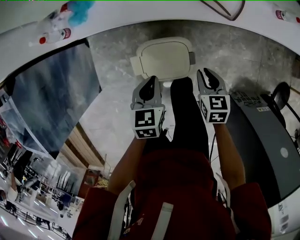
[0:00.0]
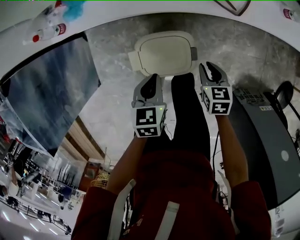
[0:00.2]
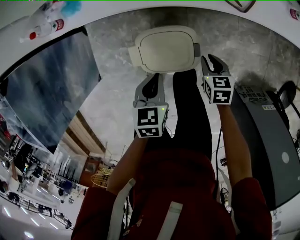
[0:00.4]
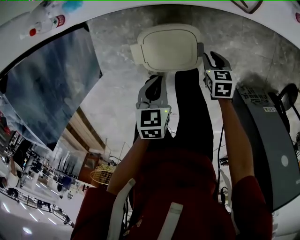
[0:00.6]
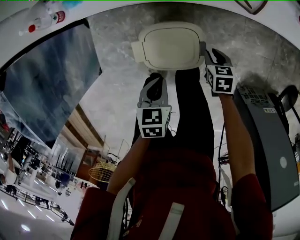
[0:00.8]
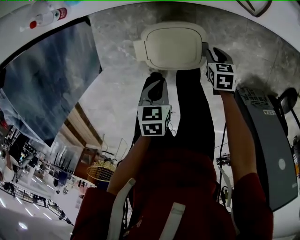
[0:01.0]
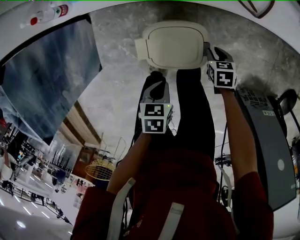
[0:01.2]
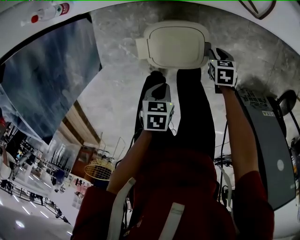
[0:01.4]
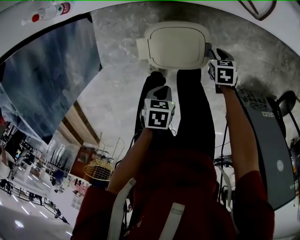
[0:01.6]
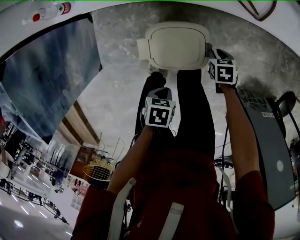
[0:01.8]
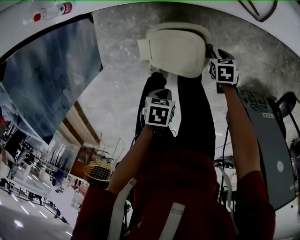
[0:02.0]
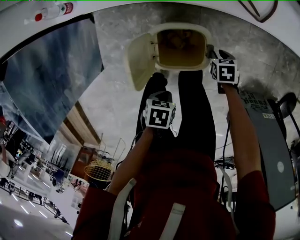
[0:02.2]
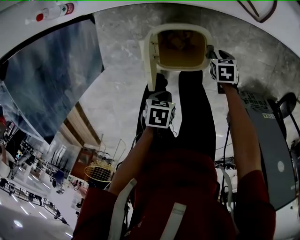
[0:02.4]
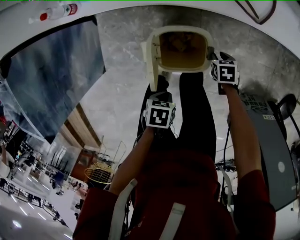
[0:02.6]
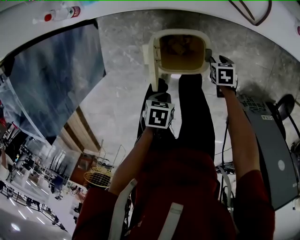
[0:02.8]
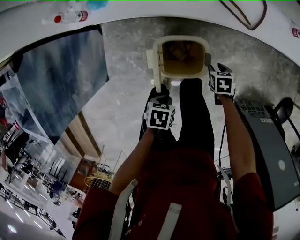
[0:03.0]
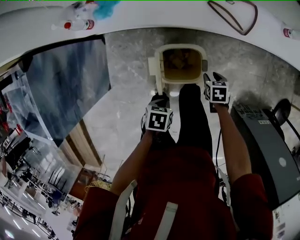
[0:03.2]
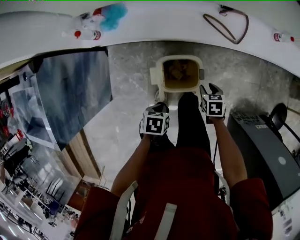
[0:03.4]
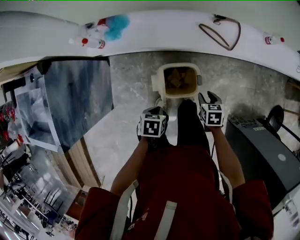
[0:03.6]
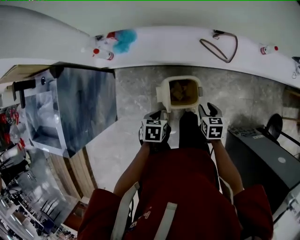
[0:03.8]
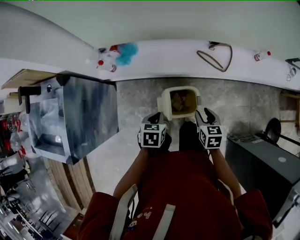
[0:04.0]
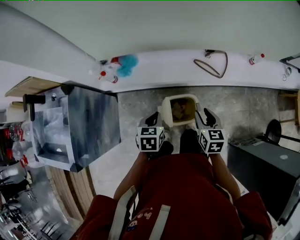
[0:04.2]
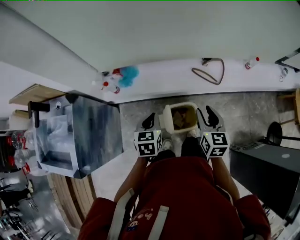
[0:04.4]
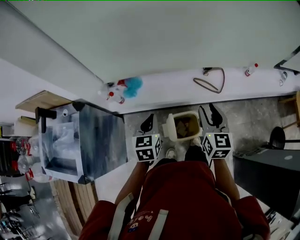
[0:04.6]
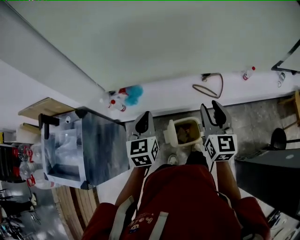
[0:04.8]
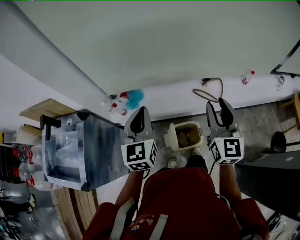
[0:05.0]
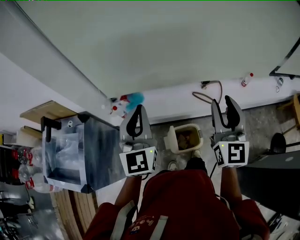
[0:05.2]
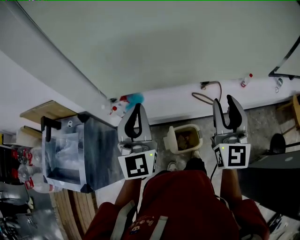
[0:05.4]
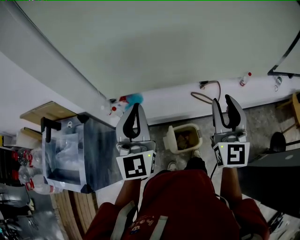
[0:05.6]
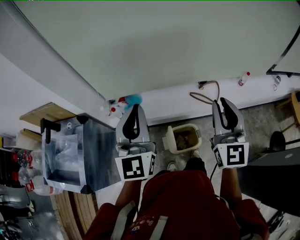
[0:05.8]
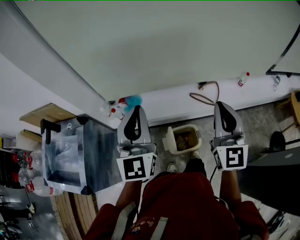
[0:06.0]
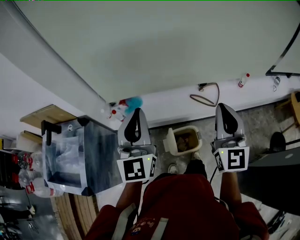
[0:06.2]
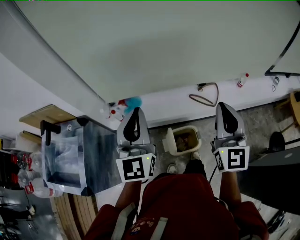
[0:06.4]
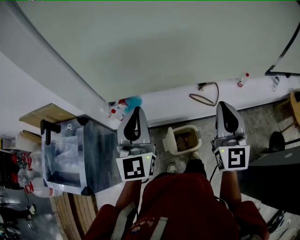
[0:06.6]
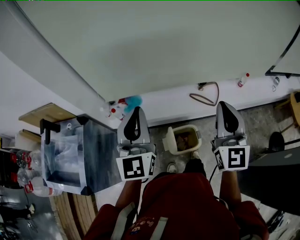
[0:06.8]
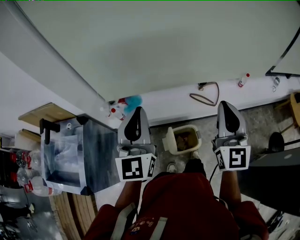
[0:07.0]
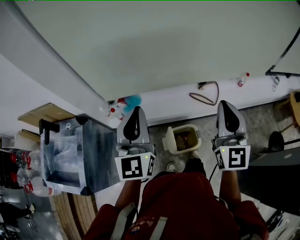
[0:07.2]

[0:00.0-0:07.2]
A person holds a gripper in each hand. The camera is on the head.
0.0 to 1.4 s: The right gripper moves downward, approximately 15 cm; the left gripper shifts approximately 15 cm backward and downward, and changes its angle by roughly 30 degrees.
1.4 to 2.8 s: The grippers make only small movements.
2.8 to 4.4 s: The right gripper is displaced upward by about 50 cm, and angles its fingers upward, by approximately 50 degrees. The left gripper goes about 30 cm upward, and tips its fingers upward by some 30 degrees.
4.4 to 5.8 s: The two grippers go about 30 cm upward. The left gripper points its fingers approximately 50 degrees further upward, while the right gripper tips its fingers upward by approximately 30 degrees, and closes.
5.8 to 7.2 s: The grippers make only small movements.

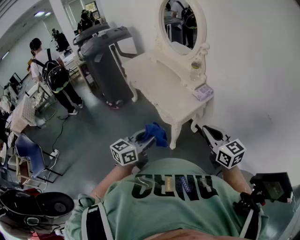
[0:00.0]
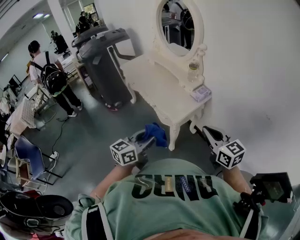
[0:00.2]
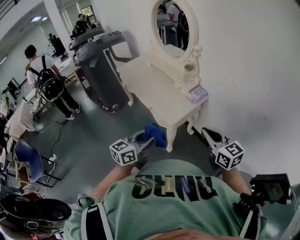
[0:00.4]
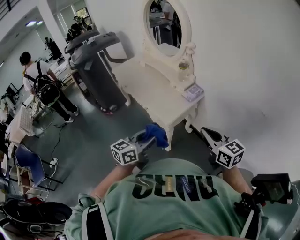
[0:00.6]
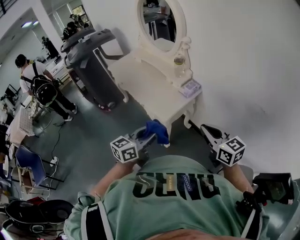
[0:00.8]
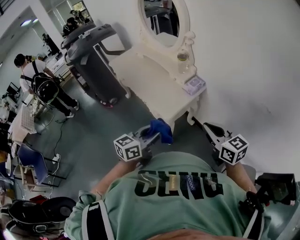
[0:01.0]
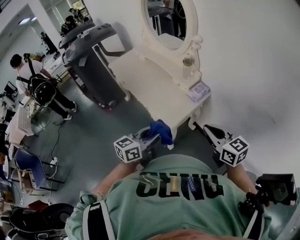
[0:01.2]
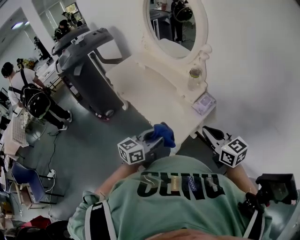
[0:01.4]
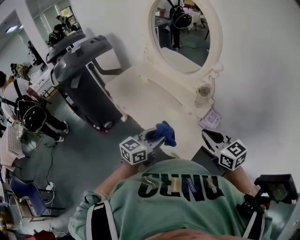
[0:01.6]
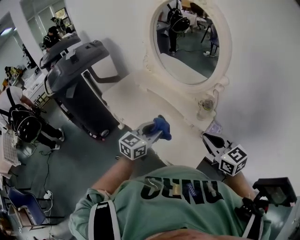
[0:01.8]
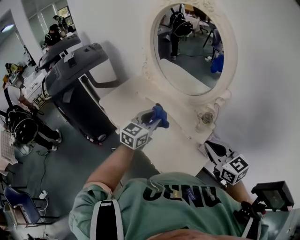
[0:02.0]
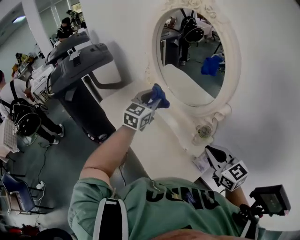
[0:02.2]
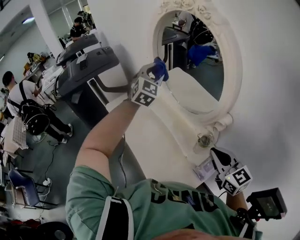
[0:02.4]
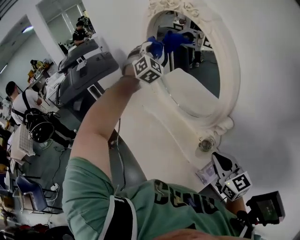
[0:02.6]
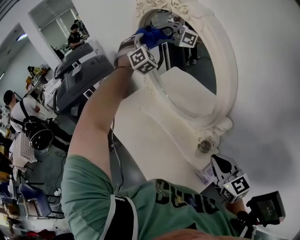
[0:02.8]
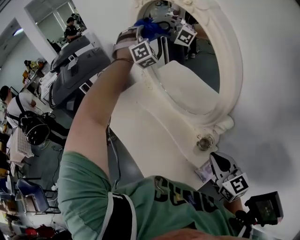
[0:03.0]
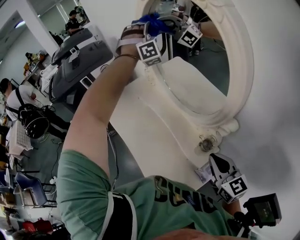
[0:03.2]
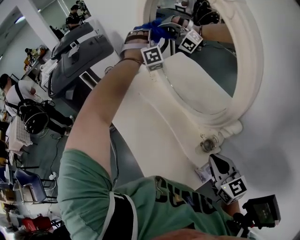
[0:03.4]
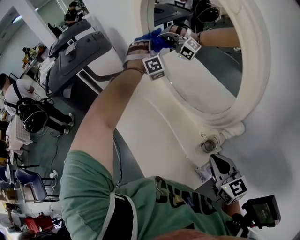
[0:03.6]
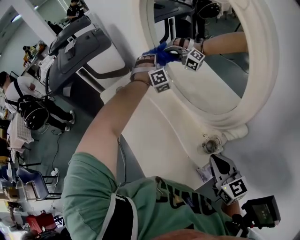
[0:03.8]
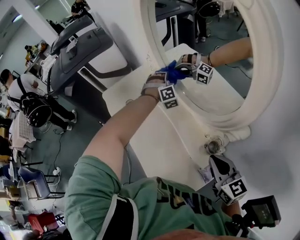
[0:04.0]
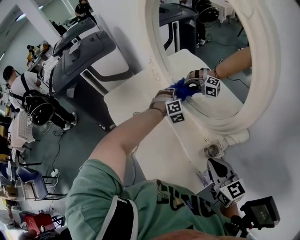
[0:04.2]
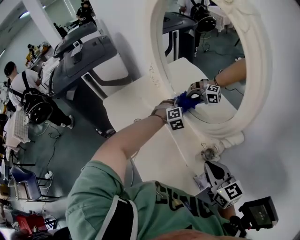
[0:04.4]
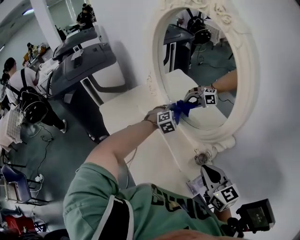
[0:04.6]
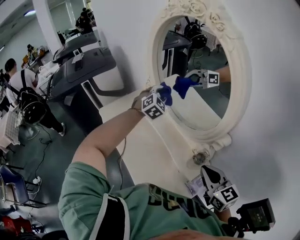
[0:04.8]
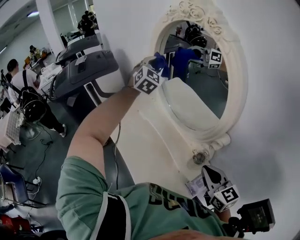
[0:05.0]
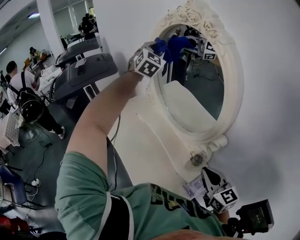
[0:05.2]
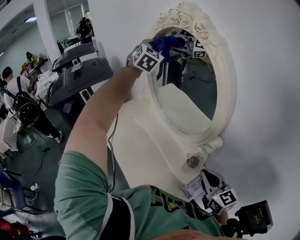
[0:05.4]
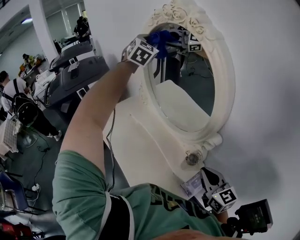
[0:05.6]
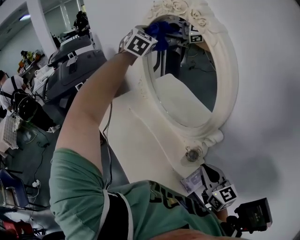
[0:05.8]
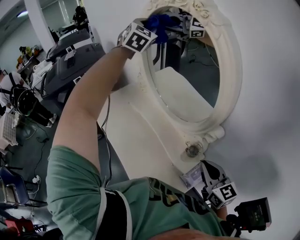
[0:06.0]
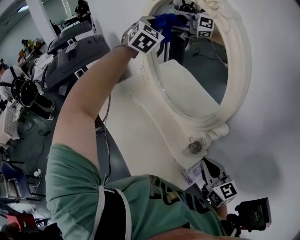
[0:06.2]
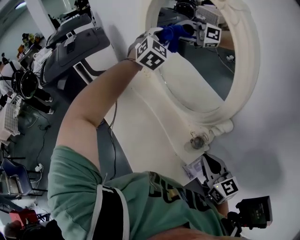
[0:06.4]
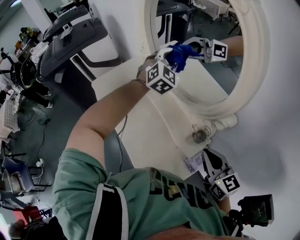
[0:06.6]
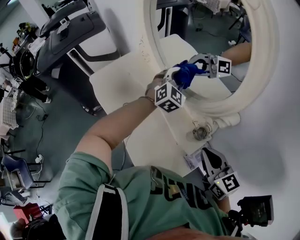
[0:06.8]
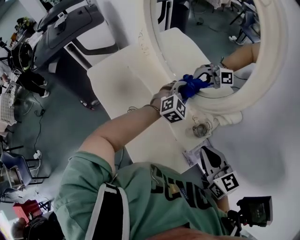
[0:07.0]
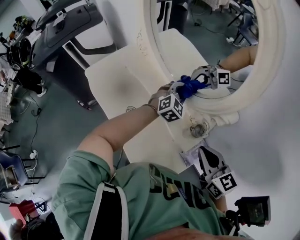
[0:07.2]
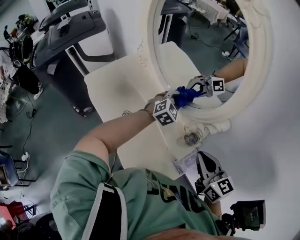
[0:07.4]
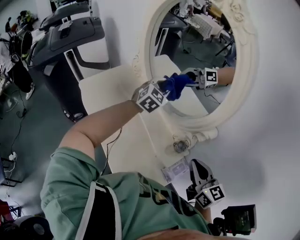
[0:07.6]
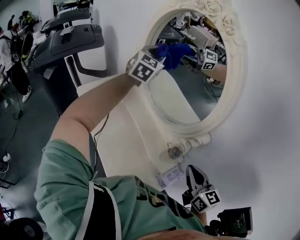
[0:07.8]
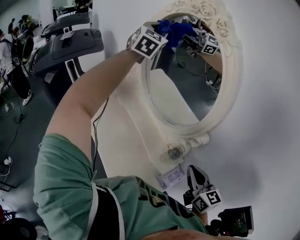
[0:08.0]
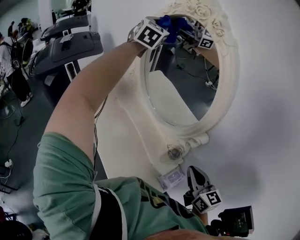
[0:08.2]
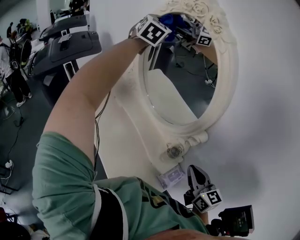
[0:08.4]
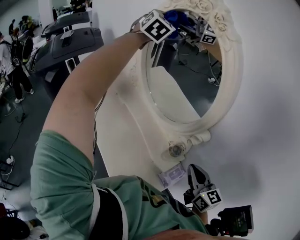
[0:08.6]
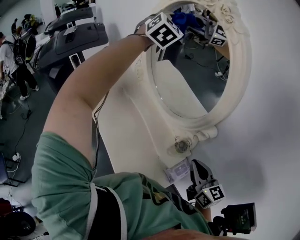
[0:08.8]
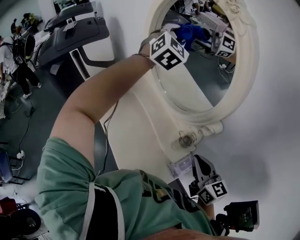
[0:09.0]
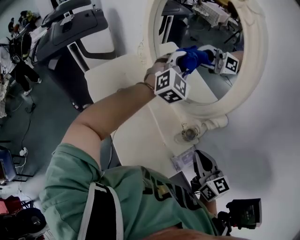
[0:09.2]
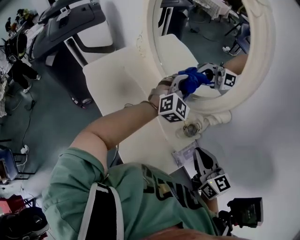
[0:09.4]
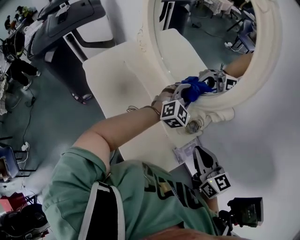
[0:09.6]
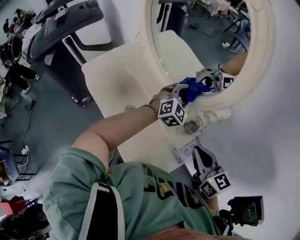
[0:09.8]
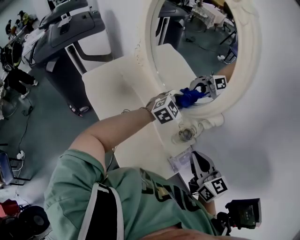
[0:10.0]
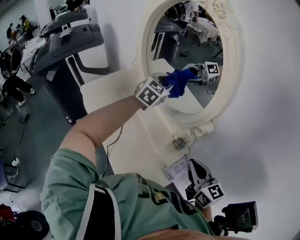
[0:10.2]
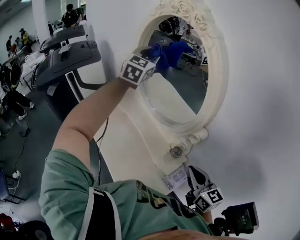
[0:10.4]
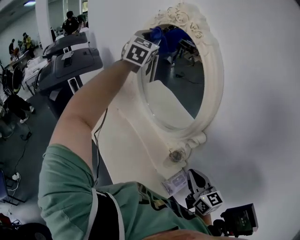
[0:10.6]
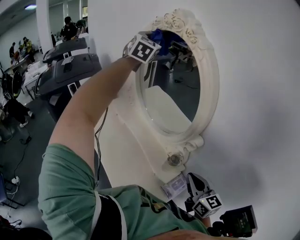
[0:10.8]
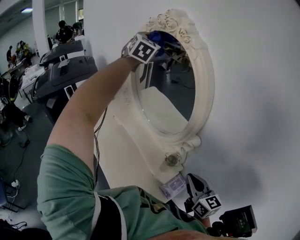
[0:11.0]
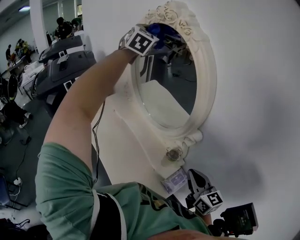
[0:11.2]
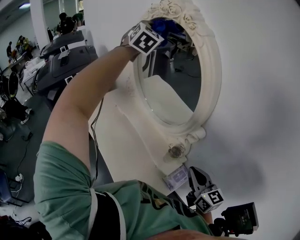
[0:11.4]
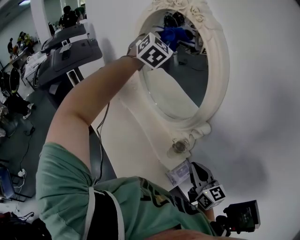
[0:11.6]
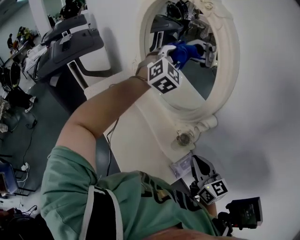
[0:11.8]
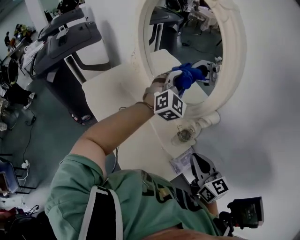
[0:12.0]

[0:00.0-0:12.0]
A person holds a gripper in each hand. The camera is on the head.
0.0 to 1.6 s: The grippers both shift forward by about 30 cm.
1.6 to 3.0 s: The left gripper changes place by some 70 cm, and rolls clockwise, seen from behind, by roughly 90 degrees; the right gripper ends up approximately 25 cm from where it was.
3.0 to 4.4 s: The right gripper shifts about 5 cm downward. Meanwhile the left gripper is displaced downward by roughly 40 cm, and angles its fingers downward, by roughly 50 degrees.
4.4 to 6.0 s: The right gripper ends up some 5 cm from where it was; the left gripper goes about 50 cm upward, and angles its fingers upward, by some 40 degrees.
6.0 to 7.6 s: The left gripper travels downward and backward by some 35 cm, and turns by some 30 degrees.
7.6 to 9.0 s: The left gripper shifts approximately 25 cm upward, and rotates approximately 20 degrees.
9.0 to 10.4 s: The left gripper goes downward and returns, about 30 cm each way, and turns by about 20 degrees.
10.4 to 12.0 s: The left gripper moves downward, to the right and backward, some 20 cm, and changes its angle by about 20 degrees.

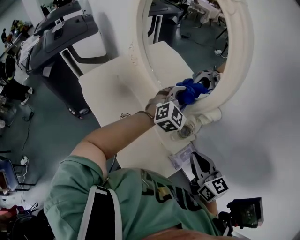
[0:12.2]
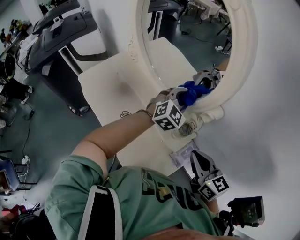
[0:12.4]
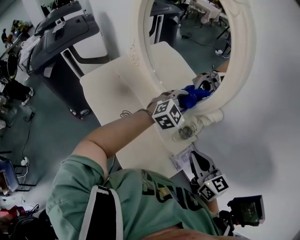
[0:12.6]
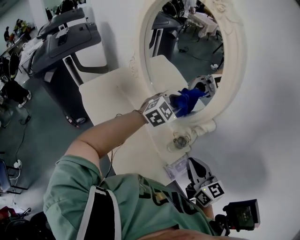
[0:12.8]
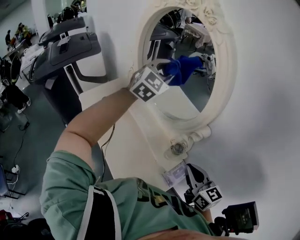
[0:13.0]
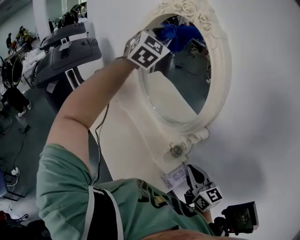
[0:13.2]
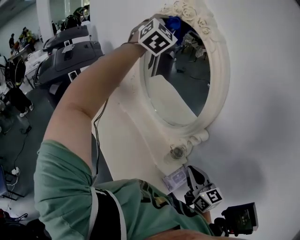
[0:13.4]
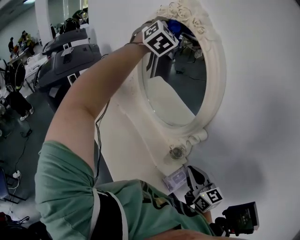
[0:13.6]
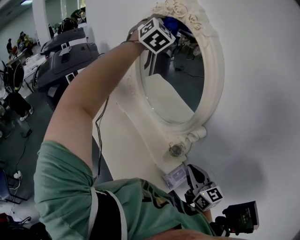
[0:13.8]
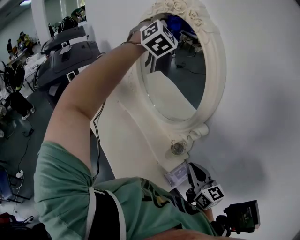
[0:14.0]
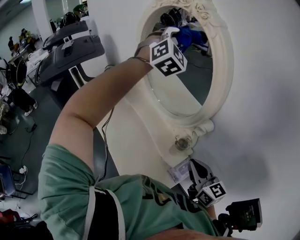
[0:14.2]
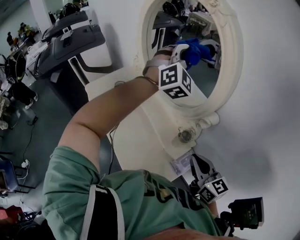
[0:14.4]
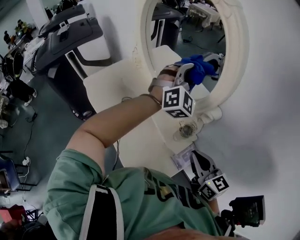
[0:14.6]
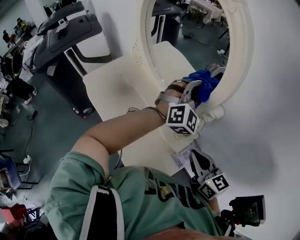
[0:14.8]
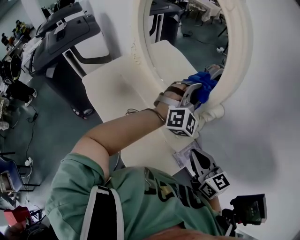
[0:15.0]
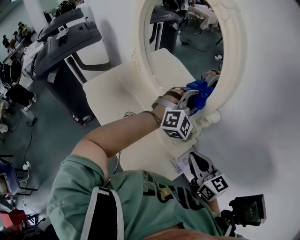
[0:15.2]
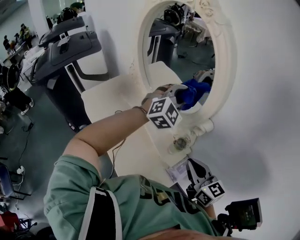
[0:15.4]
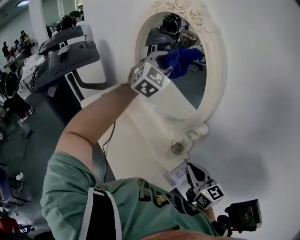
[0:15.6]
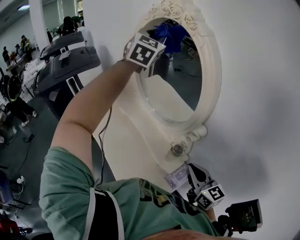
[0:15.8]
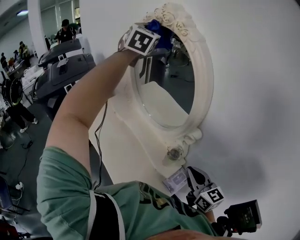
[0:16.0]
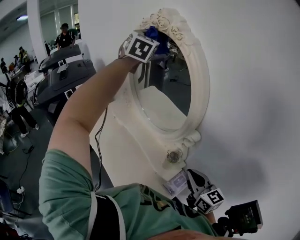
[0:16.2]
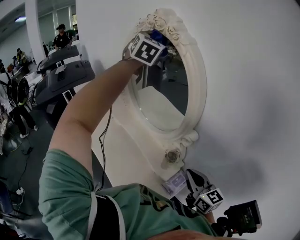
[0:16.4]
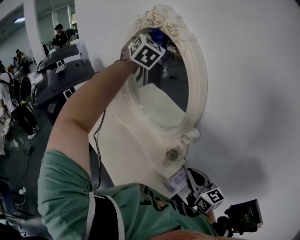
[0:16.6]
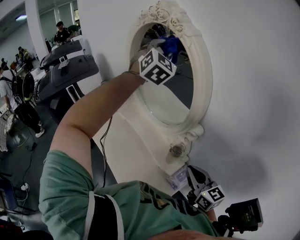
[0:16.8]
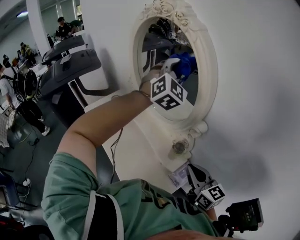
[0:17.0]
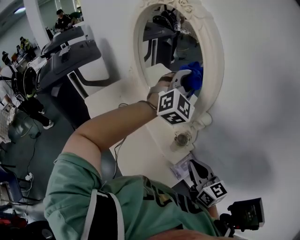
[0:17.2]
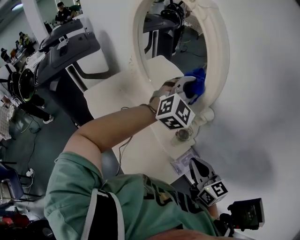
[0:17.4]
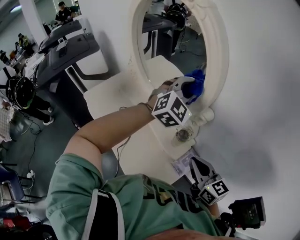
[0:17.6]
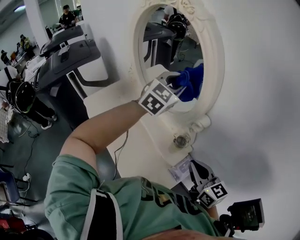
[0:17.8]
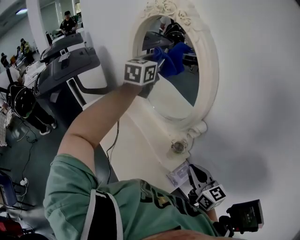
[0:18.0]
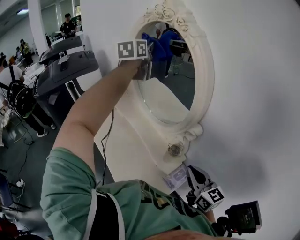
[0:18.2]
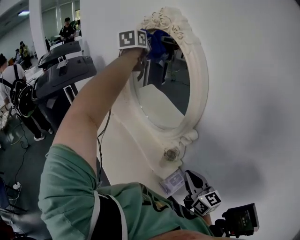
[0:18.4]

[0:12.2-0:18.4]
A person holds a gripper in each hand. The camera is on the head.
12.2 to 13.8 s: The left gripper goes about 40 cm upward and forward, and swivels approximately 30 degrees.
13.8 to 15.4 s: The left gripper shifts about 35 cm downward, backward and to the right, and turns by roughly 30 degrees.
15.4 to 16.8 s: The left gripper moves upward and forward, some 25 cm, and turns by roughly 20 degrees.
16.8 to 18.4 s: The left gripper goes some 15 cm to the left and forward, and rotates around the line of its fingers by roughly 60 degrees, counterclockwise from behind.
